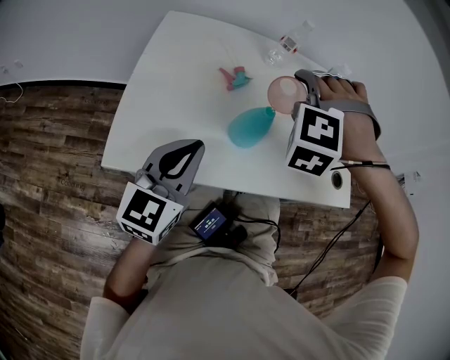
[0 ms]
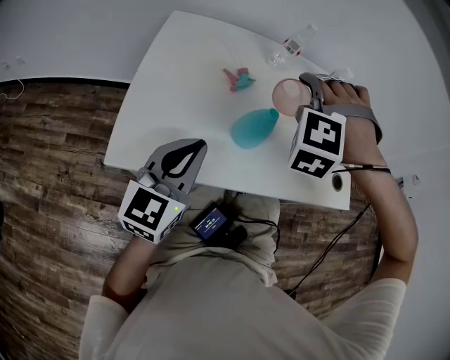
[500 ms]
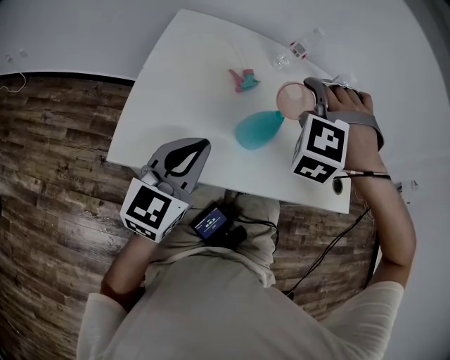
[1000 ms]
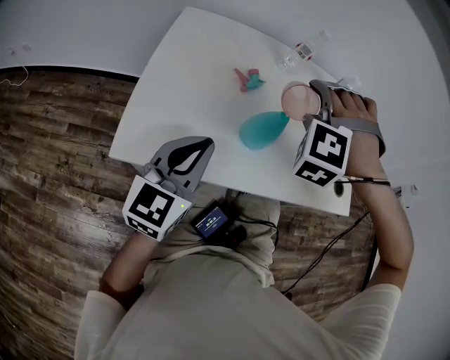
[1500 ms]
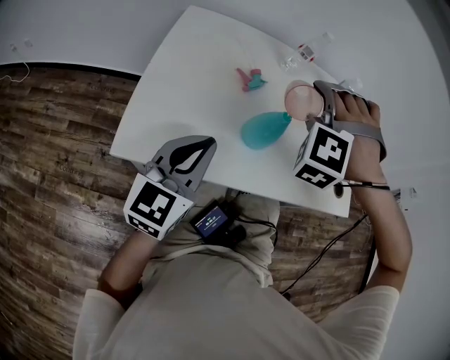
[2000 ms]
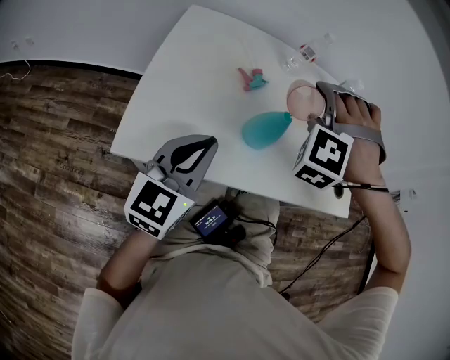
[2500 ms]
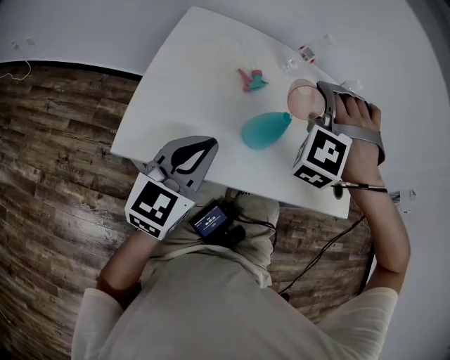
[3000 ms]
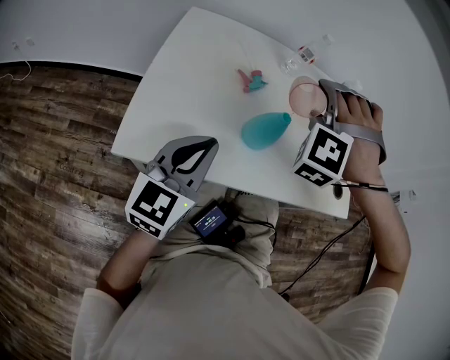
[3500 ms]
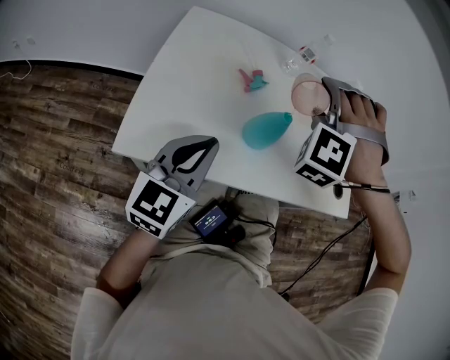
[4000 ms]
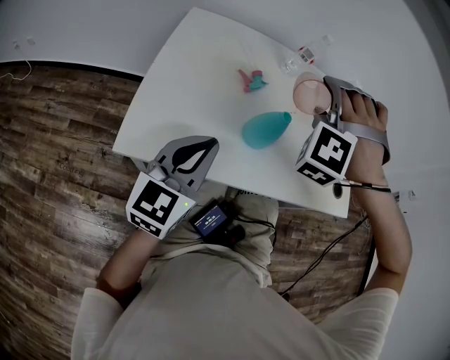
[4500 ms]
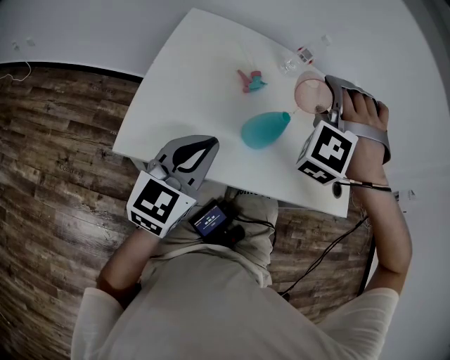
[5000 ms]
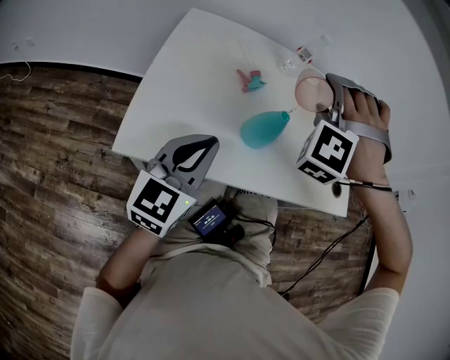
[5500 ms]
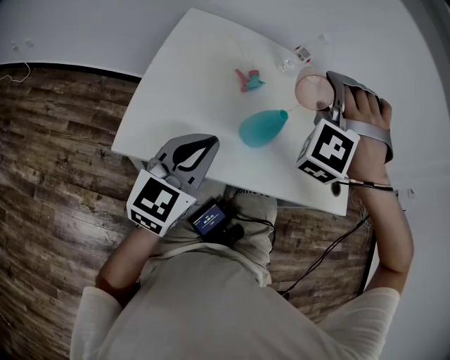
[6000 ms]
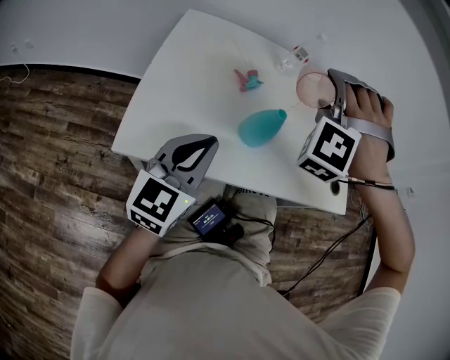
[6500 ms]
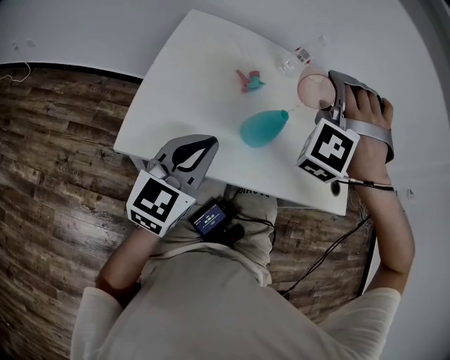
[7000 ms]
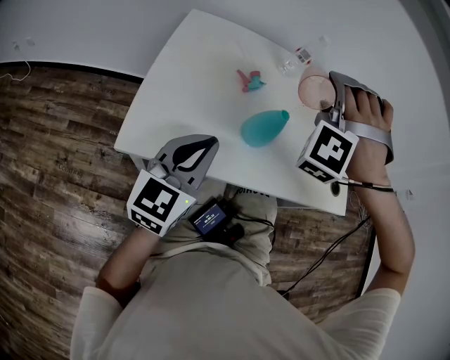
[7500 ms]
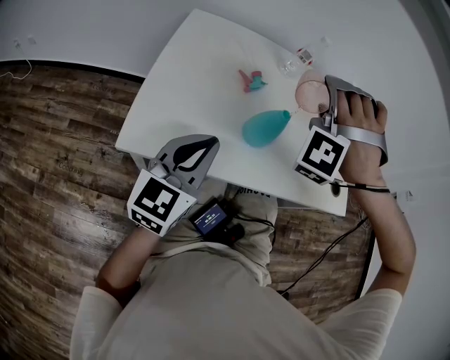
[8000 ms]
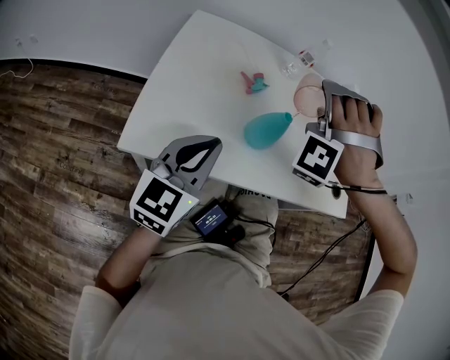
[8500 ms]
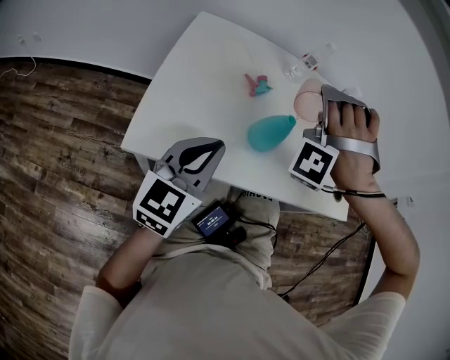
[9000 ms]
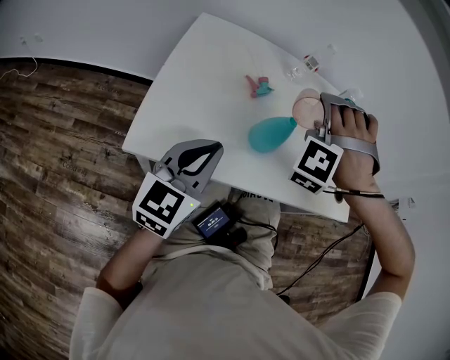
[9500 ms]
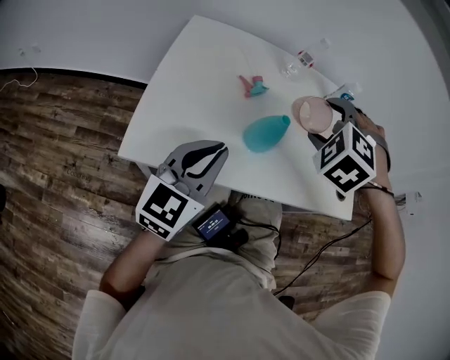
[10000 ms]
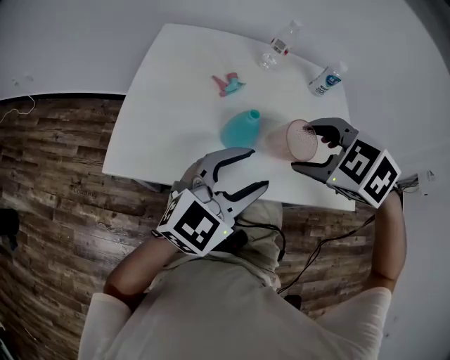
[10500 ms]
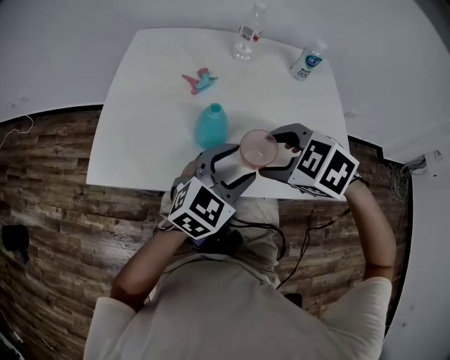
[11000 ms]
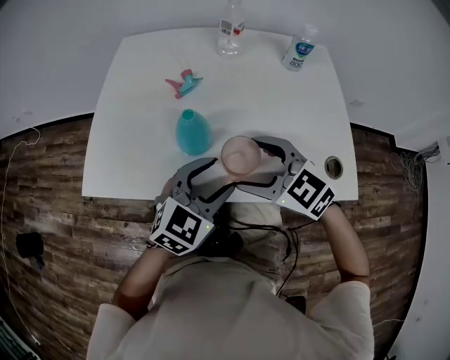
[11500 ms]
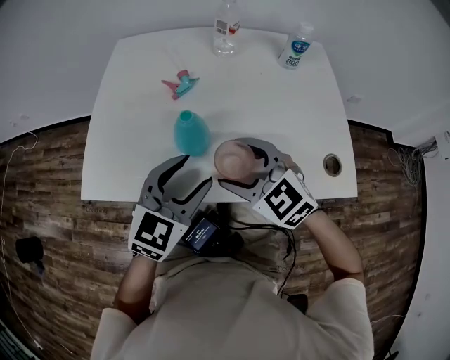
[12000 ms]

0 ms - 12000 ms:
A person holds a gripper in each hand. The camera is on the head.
0 ms - 4000 ms: The grippers move only a little.
4000 ms - 8000 ms: There are only small adjustments of the grippers.
8000 ms - 10000 ms: The right gripper changes place by about 5 cm, and tilts its fingers approximately 30 degrees downward.
10000 ms - 12000 ms: The right gripper heads downward, covering some 10 cm, and changes its angle by some 60 degrees. The left gripper ends up about 15 cm from where it was, rotates some 20 degrees, and opens up.

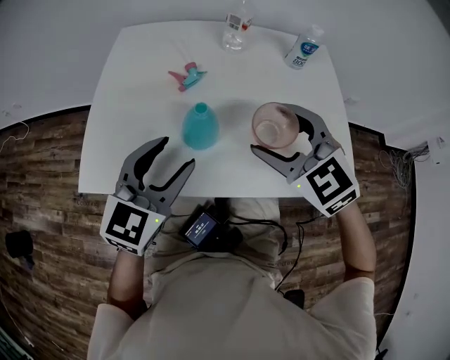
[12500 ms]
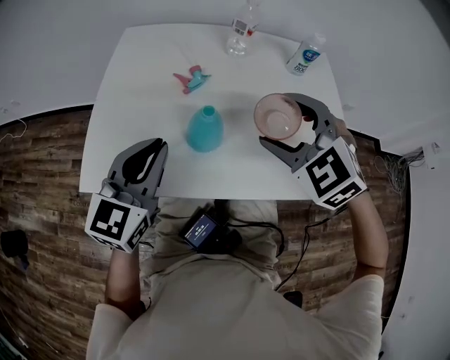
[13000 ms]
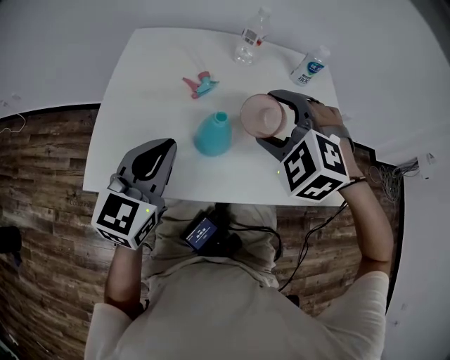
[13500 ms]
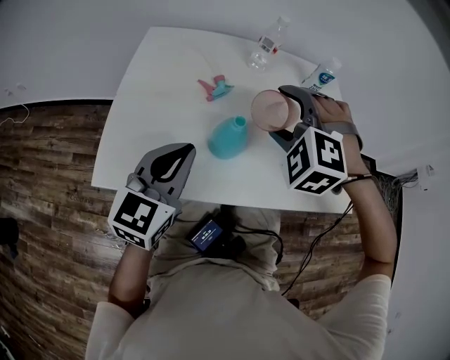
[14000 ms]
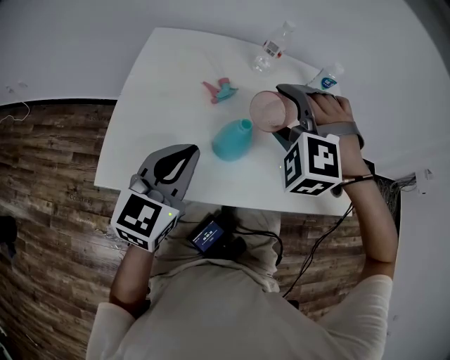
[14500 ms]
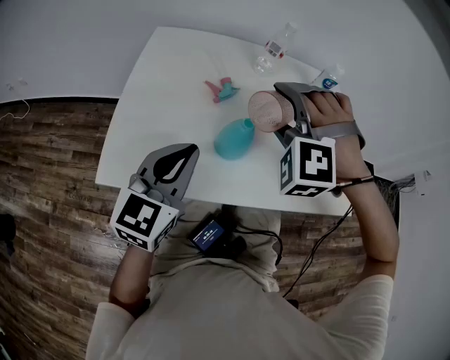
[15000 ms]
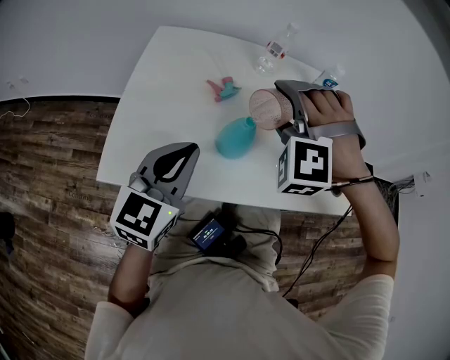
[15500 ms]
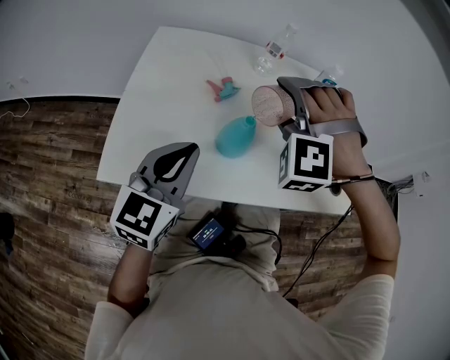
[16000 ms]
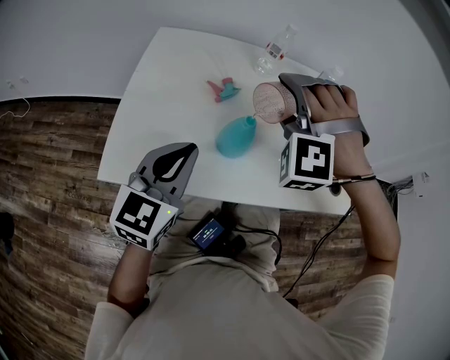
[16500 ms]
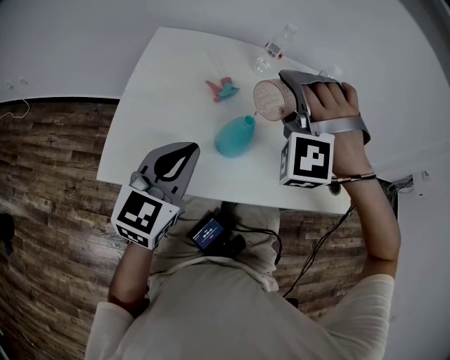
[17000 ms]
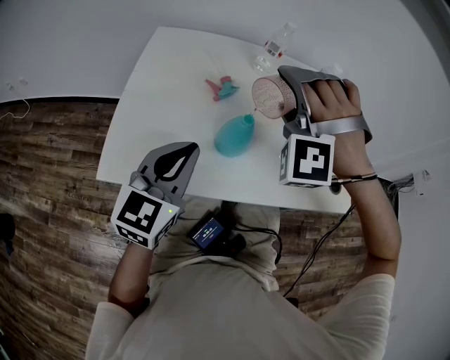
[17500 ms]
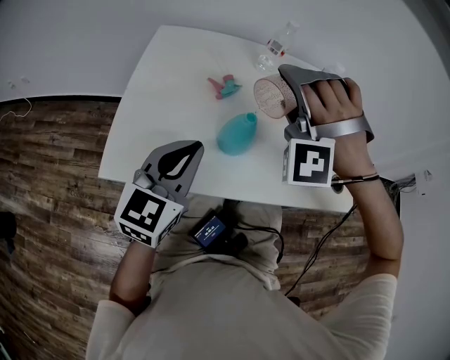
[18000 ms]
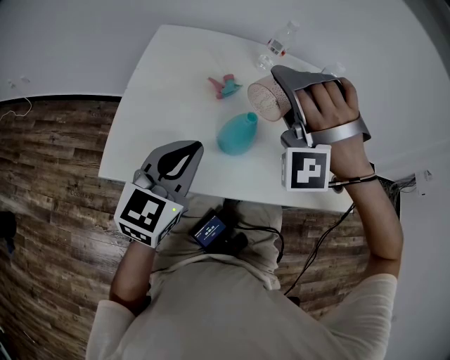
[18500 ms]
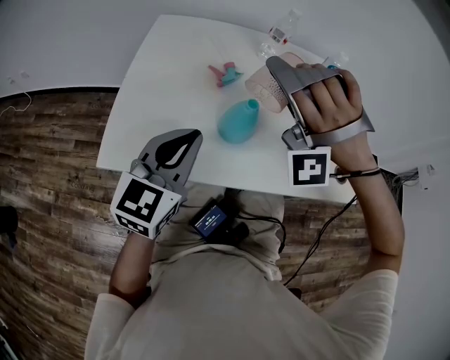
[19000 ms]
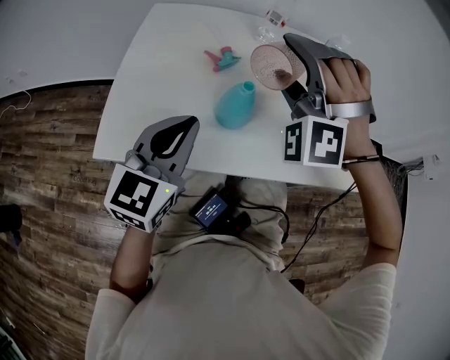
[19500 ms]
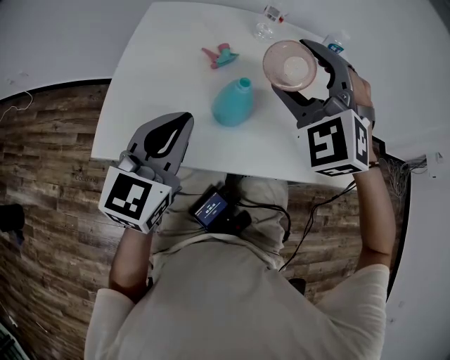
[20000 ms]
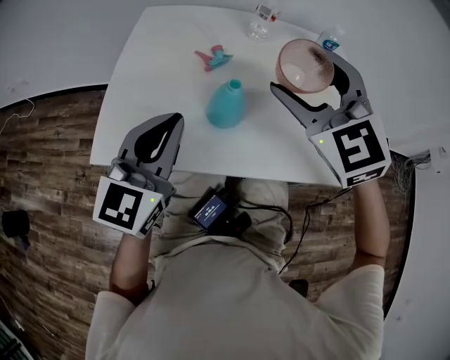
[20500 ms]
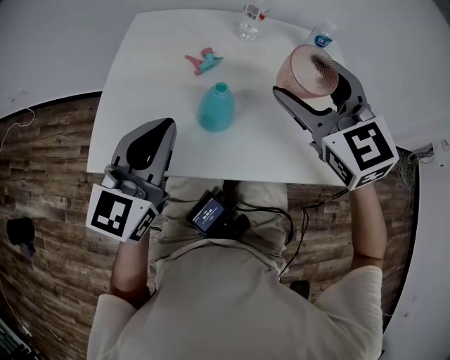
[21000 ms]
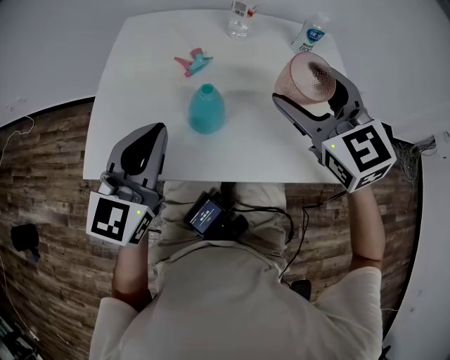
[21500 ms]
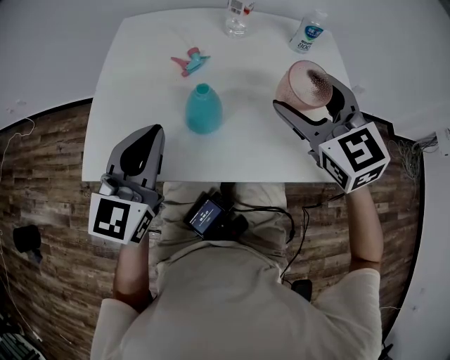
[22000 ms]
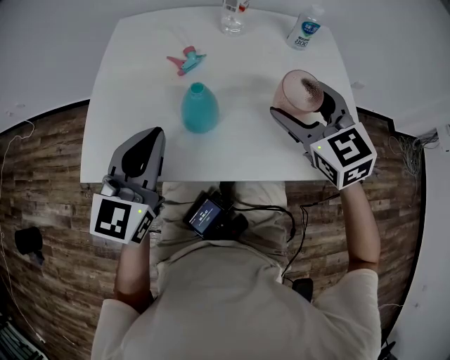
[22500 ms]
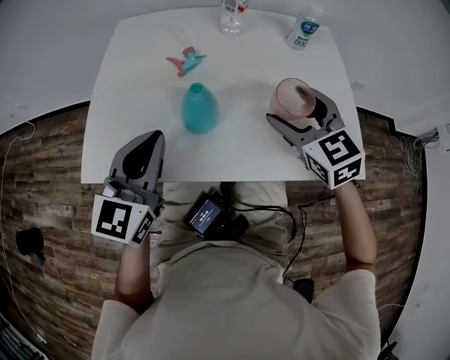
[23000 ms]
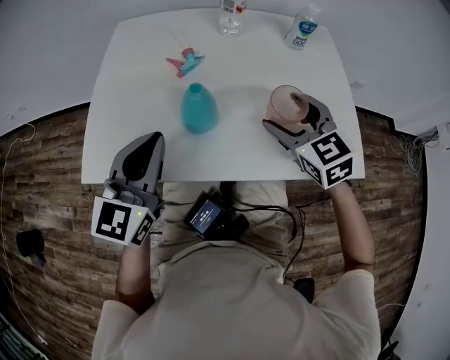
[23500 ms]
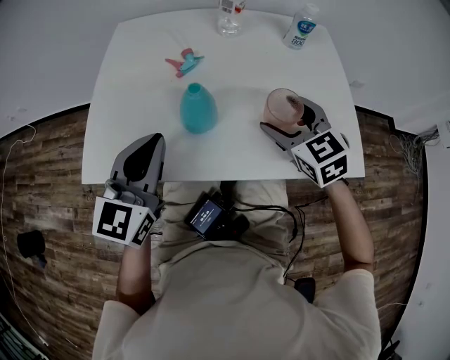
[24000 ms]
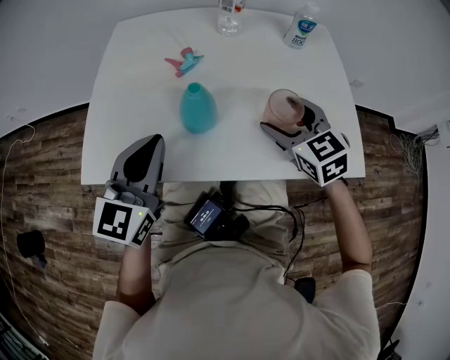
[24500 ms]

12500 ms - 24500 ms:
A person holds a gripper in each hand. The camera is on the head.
12500 ms - 14500 ms: The left gripper heads to the left, covering approximately 5 cm, and closes its fingers; the right gripper shifts roughly 10 cm to the left and forward, and twists some 50 degrees counterclockwise, seen from behind.
14500 ms - 16500 ms: There are only small adjustments of the grippers.
16500 ms - 18500 ms: The grippers make only small movements.
18500 ms - 20500 ms: The right gripper travels to the right by some 5 cm, and twists about 70 degrees clockwise, seen from behind.
20500 ms - 22500 ms: The right gripper moves to the right and downward, roughly 15 cm, and changes its angle by roughly 20 degrees.
22500 ms - 24500 ms: The right gripper shifts some 10 cm downward.

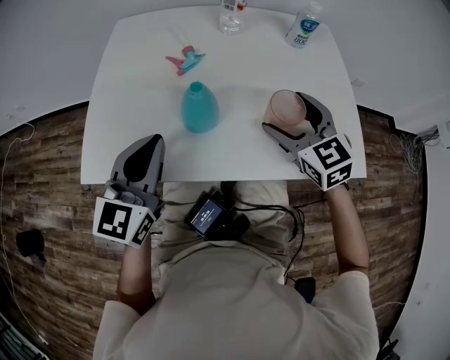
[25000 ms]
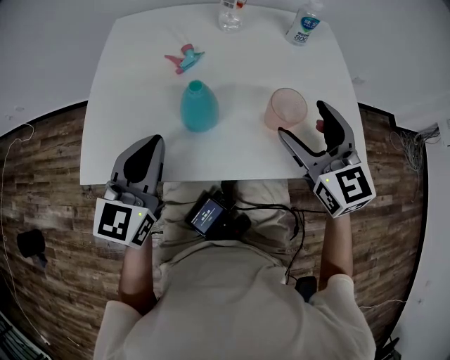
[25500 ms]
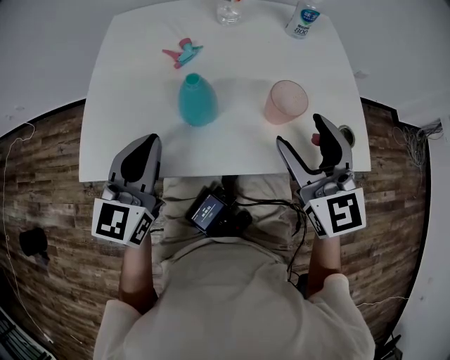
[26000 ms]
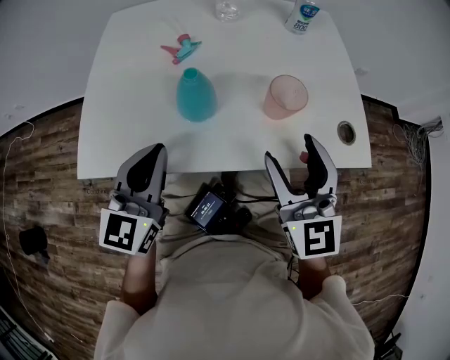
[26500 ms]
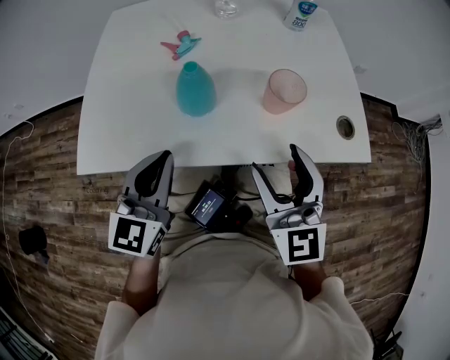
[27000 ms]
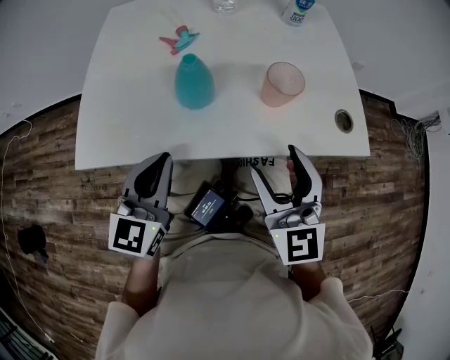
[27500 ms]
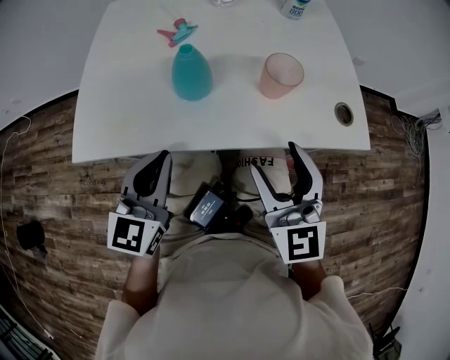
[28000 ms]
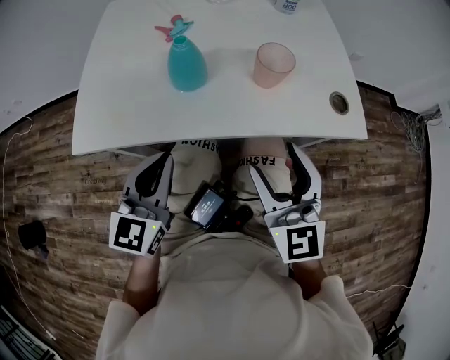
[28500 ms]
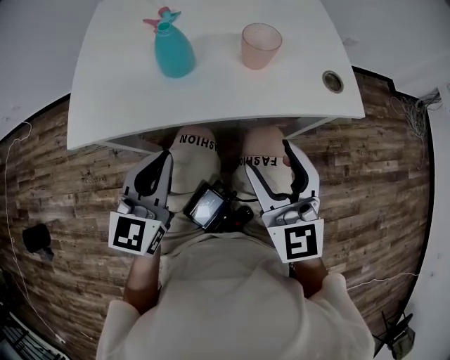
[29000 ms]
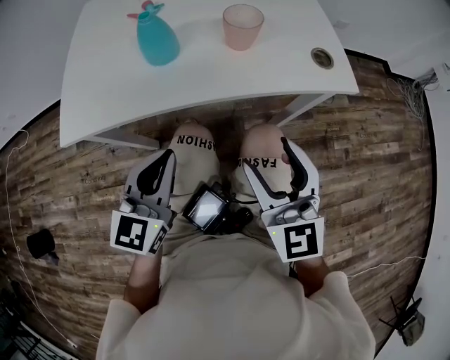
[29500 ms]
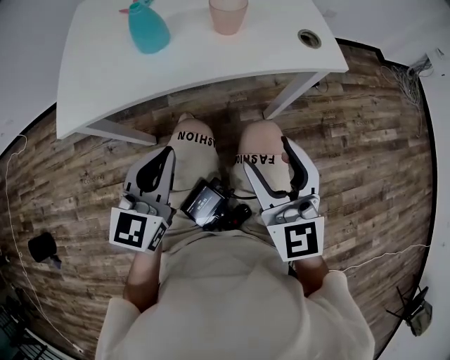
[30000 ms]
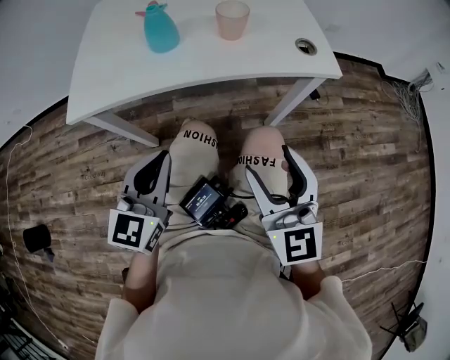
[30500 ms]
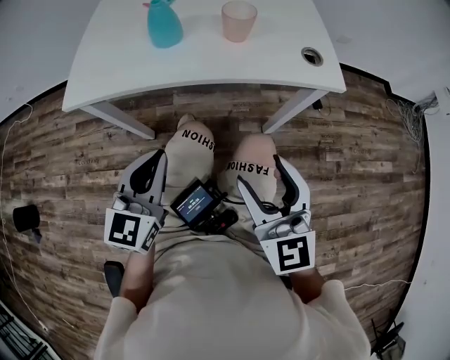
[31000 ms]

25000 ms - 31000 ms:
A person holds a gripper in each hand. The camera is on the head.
25000 ms - 27000 ms: The right gripper moves backward, roughly 15 cm, and swivels about 30 degrees. The left gripper ends up about 5 cm from where it was.
27000 ms - 29000 ms: The grippers both shift backward by roughly 10 cm.
29000 ms - 31000 ms: The two grippers go some 10 cm backward and to the right.
